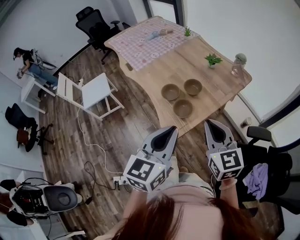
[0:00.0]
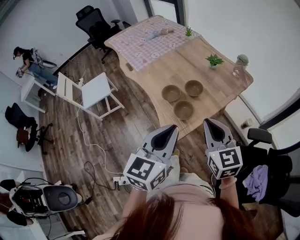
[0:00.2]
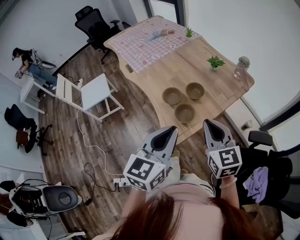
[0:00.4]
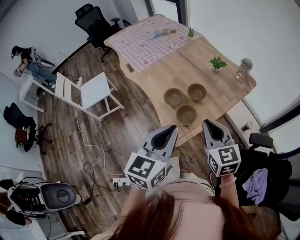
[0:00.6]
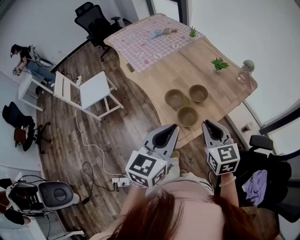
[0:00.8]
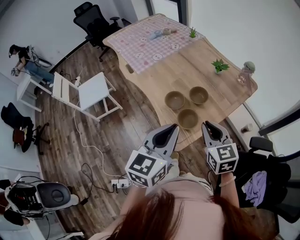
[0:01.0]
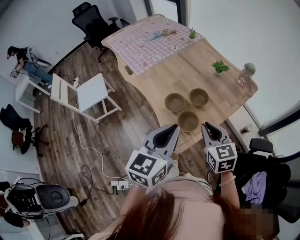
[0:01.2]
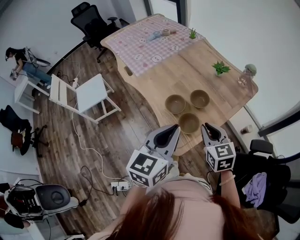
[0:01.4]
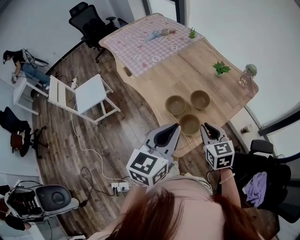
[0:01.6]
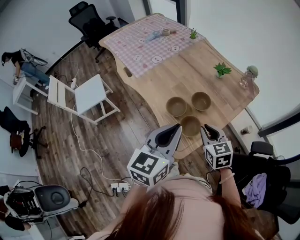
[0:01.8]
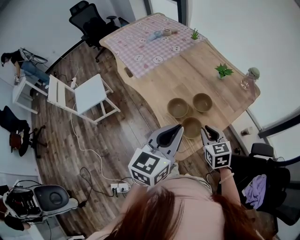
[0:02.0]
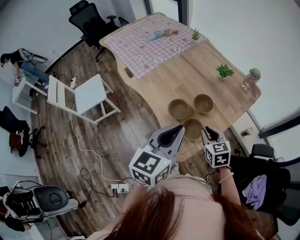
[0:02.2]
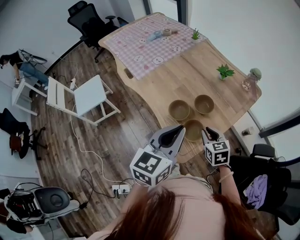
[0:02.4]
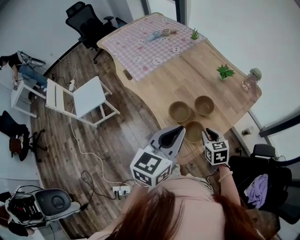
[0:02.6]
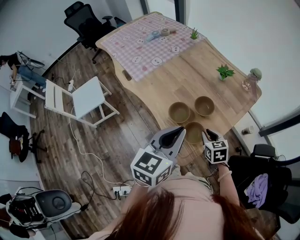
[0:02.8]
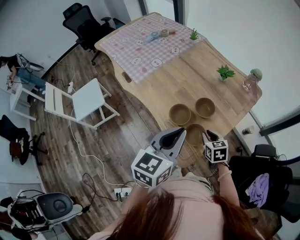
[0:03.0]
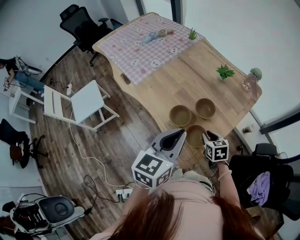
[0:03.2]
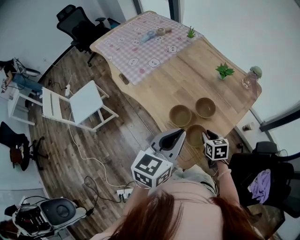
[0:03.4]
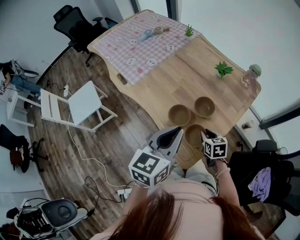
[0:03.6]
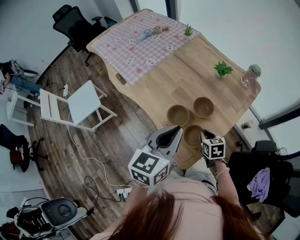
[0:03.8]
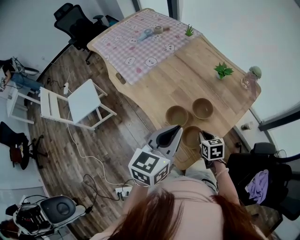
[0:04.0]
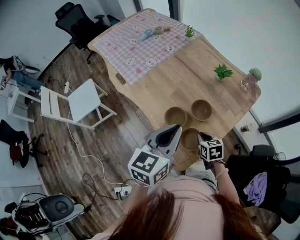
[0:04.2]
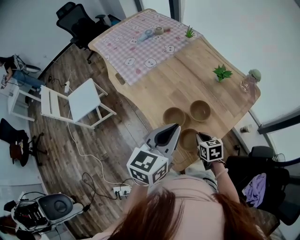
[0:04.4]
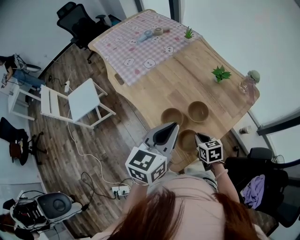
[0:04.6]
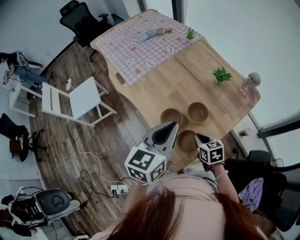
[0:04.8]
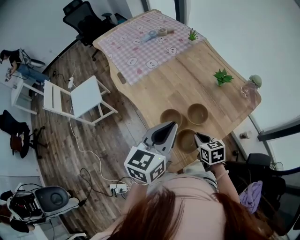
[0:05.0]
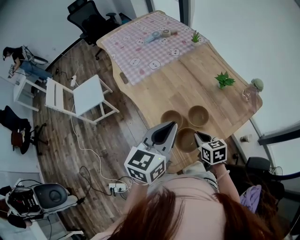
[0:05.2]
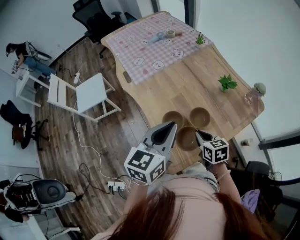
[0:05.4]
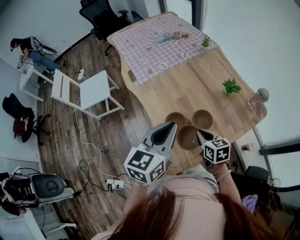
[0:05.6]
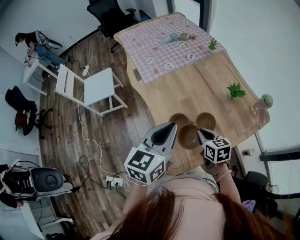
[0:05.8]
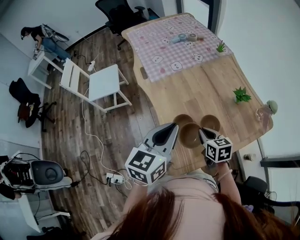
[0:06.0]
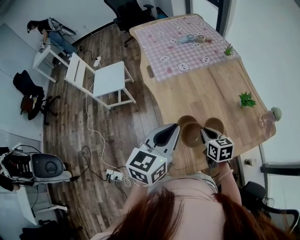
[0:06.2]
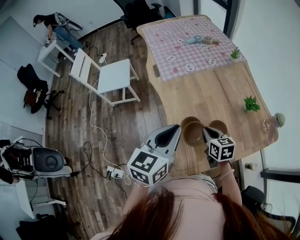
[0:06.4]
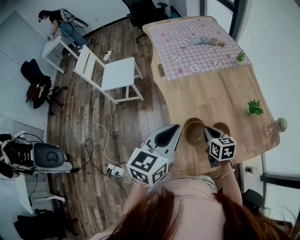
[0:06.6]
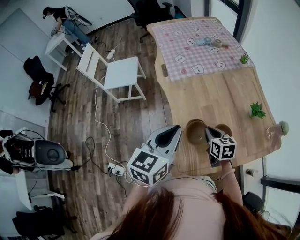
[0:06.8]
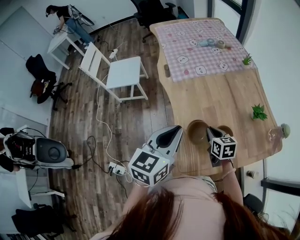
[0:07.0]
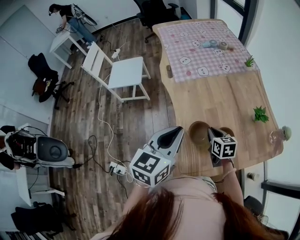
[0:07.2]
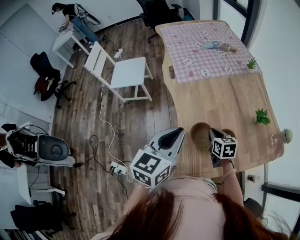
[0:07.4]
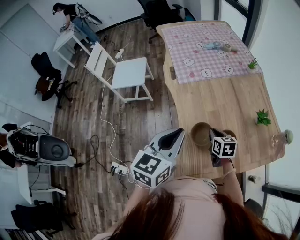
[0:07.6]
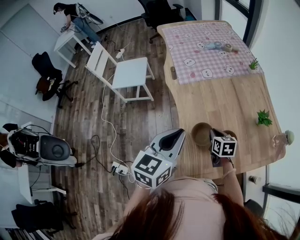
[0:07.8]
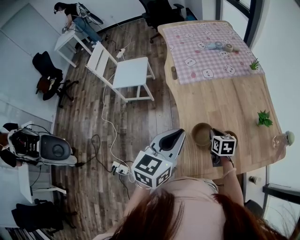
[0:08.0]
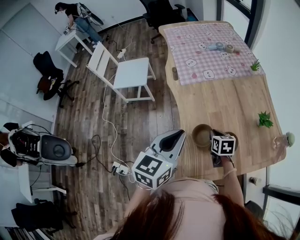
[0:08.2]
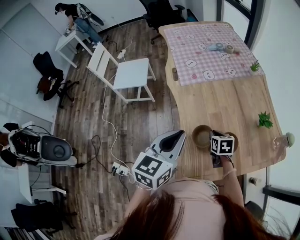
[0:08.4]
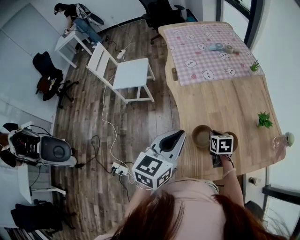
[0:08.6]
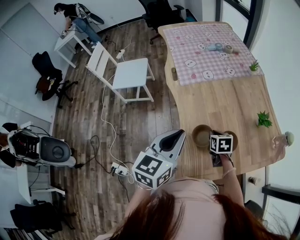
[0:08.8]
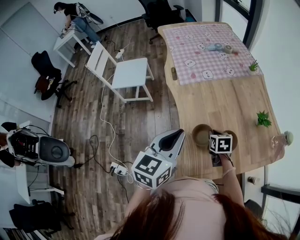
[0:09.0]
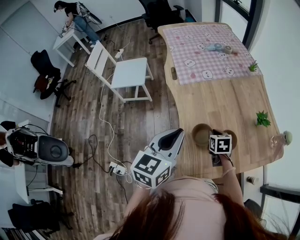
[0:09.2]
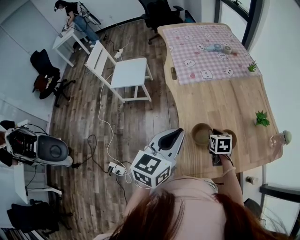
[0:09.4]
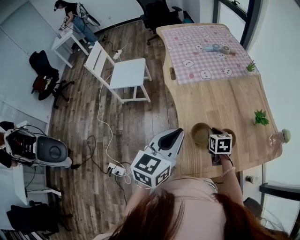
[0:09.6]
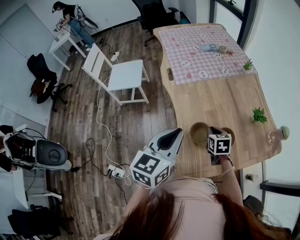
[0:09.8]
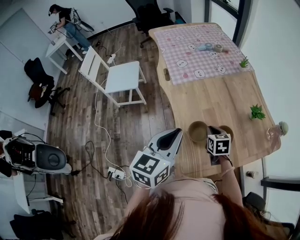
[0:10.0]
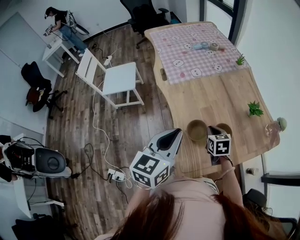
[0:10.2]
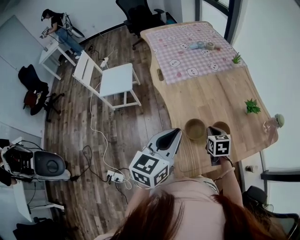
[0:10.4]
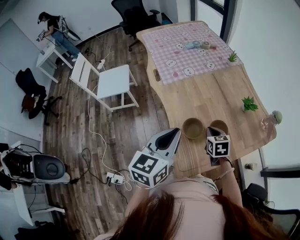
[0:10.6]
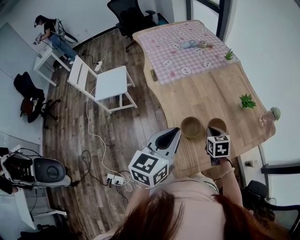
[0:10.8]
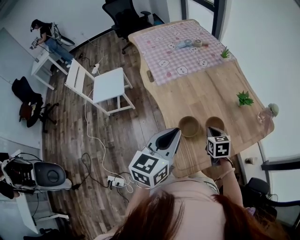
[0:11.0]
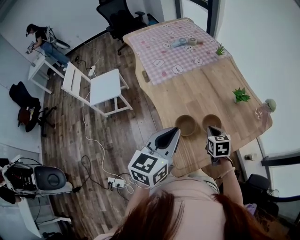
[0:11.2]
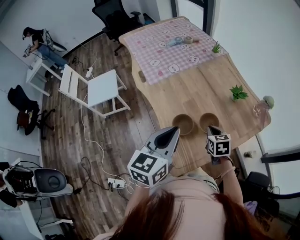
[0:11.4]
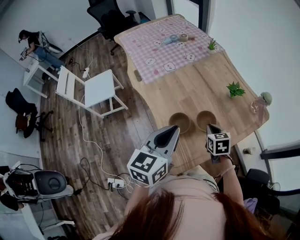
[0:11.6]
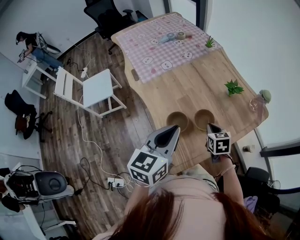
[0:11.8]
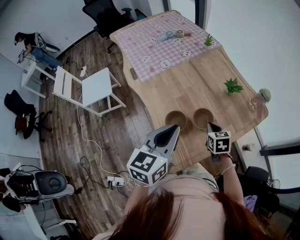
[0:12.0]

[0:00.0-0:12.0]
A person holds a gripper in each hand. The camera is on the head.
0:00.0 to 0:01.6: The left gripper shifts some 15 cm forward; the right gripper goes about 20 cm downward and forward.
0:01.6 to 0:03.0: The right gripper moves downward, approximately 15 cm, while the left gripper goes some 5 cm forward.
0:03.0 to 0:04.4: The left gripper moves forward, some 5 cm.
0:04.4 to 0:06.0: The right gripper goes about 10 cm upward and forward, and rotates about 20 degrees.
0:06.0 to 0:07.6: The left gripper goes approximately 5 cm to the left. Meanwhile the right gripper is displaced forward by approximately 5 cm.
0:07.6 to 0:09.0: The grippers stay close to where they were, moving slightly.
0:09.0 to 0:10.4: The right gripper moves roughly 5 cm.
0:10.4 to 0:12.0: Both grippers travel together to the right, some 10 cm.

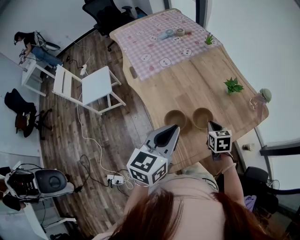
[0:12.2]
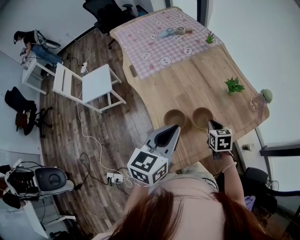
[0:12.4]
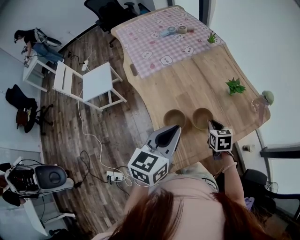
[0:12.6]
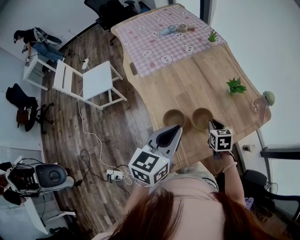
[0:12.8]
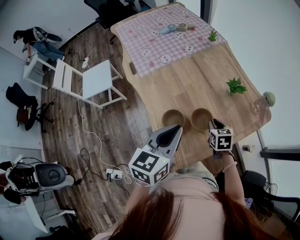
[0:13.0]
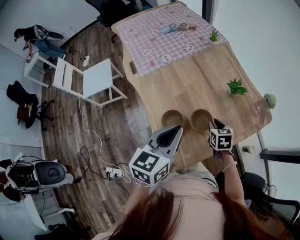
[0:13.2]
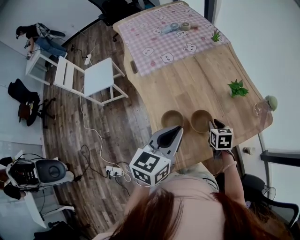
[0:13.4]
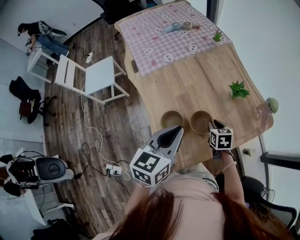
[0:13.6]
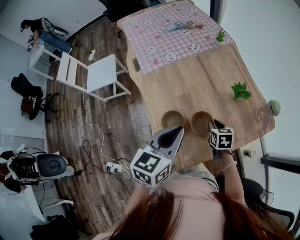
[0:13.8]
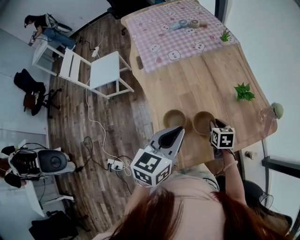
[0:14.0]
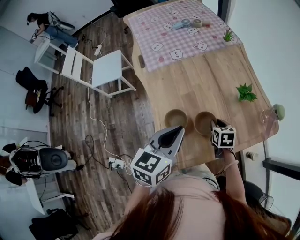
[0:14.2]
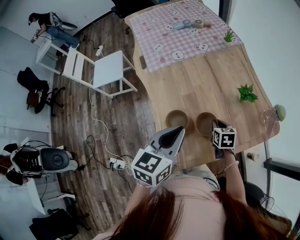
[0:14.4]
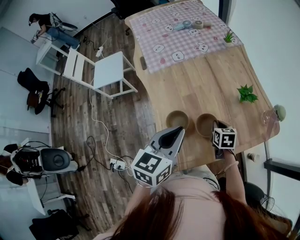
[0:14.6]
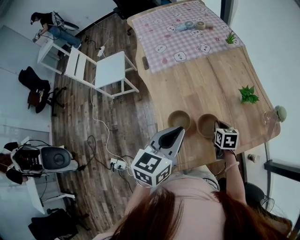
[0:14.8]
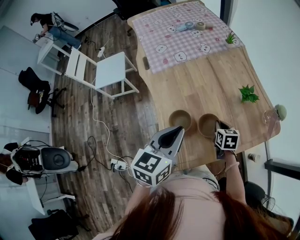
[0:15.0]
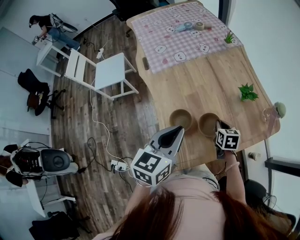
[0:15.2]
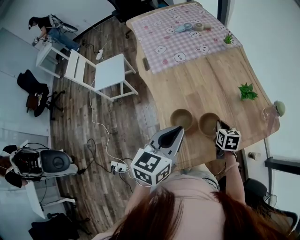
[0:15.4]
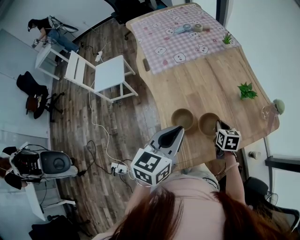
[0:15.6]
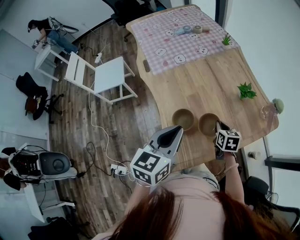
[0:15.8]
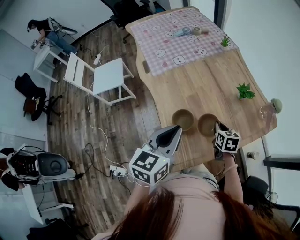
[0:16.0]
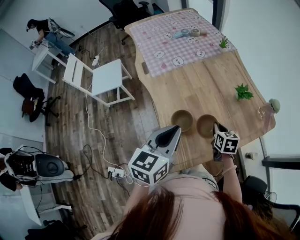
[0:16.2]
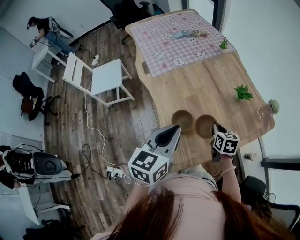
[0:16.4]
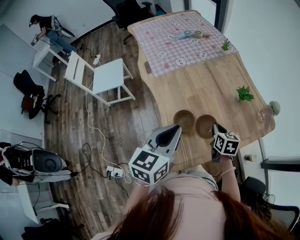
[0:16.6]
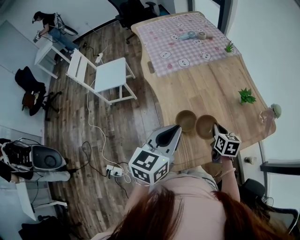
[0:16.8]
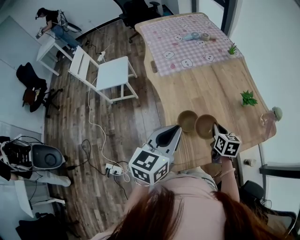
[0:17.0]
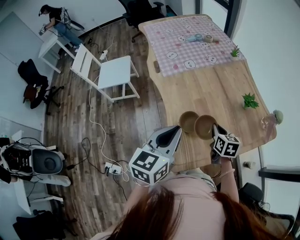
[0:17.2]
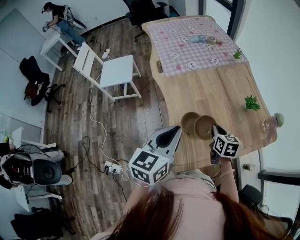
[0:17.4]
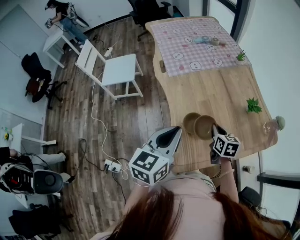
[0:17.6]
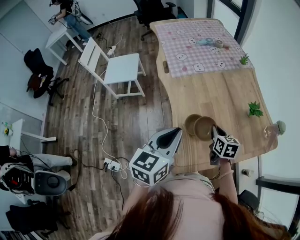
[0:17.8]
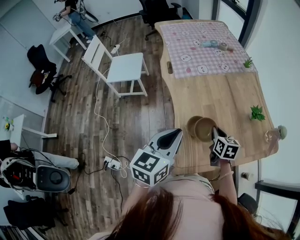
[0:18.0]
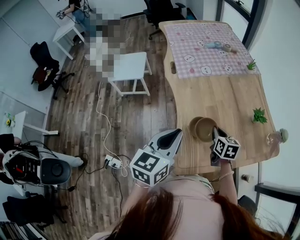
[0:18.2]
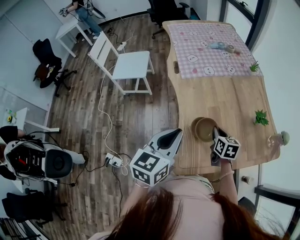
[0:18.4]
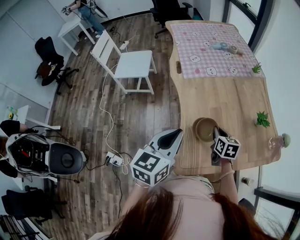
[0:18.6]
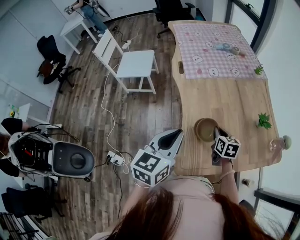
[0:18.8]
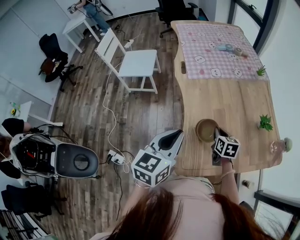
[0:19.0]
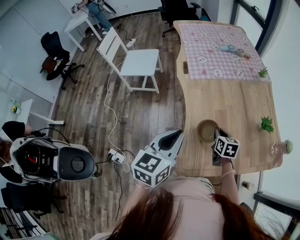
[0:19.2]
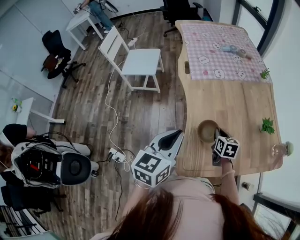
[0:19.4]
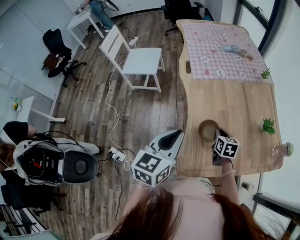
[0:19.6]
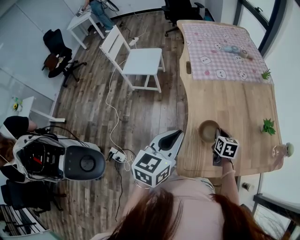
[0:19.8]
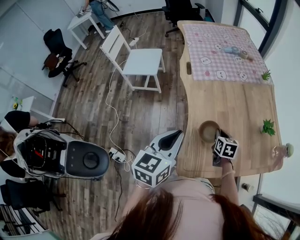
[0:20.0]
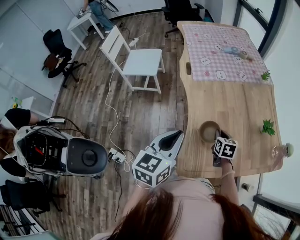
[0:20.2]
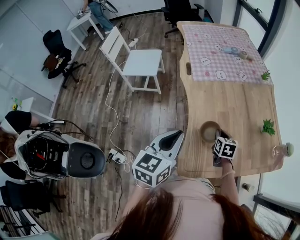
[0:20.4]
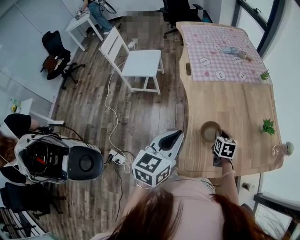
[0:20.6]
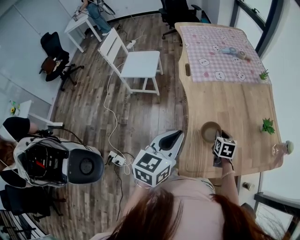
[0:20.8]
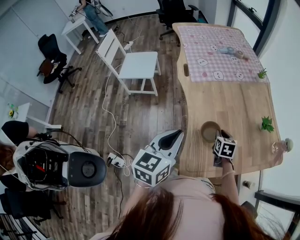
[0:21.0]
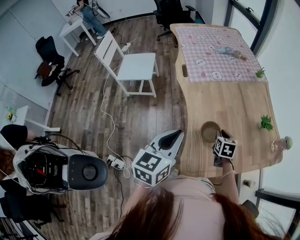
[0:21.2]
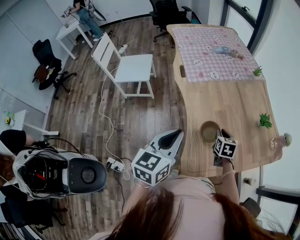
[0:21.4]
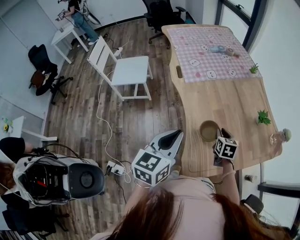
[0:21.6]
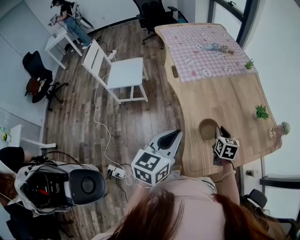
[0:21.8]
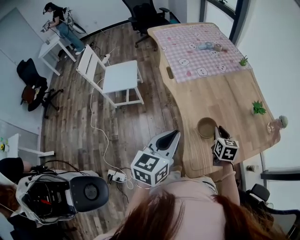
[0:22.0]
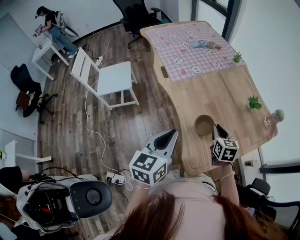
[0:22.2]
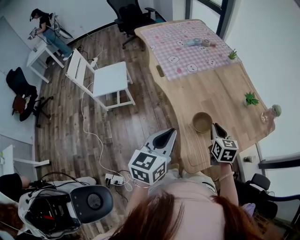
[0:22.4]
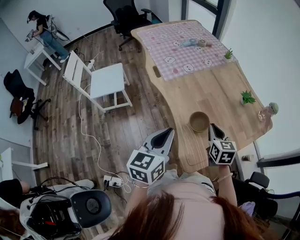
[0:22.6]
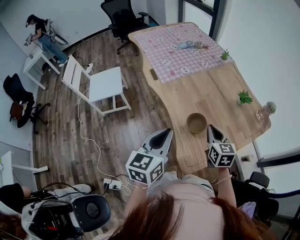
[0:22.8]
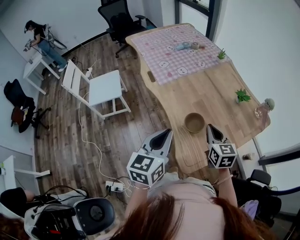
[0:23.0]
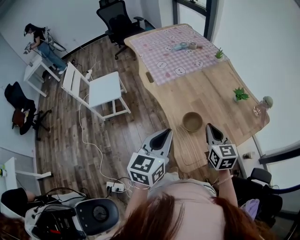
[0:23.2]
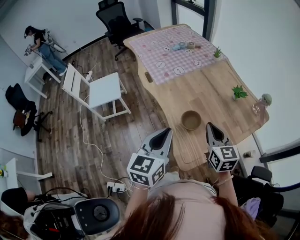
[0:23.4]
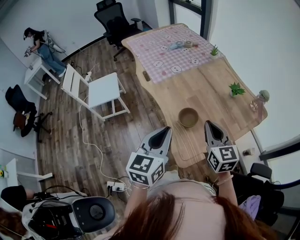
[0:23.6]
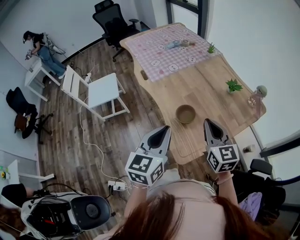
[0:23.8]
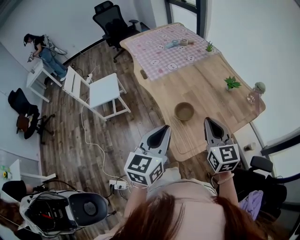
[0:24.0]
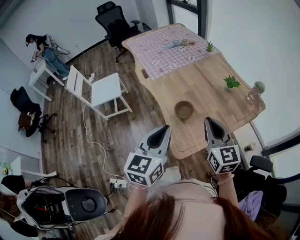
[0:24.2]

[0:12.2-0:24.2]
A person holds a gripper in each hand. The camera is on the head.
0:12.2 to 0:13.8: The right gripper heads downward and forward, covering about 5 cm; the left gripper moves roughly 5 cm.
0:13.8 to 0:15.2: The grippers move only a little.
0:15.2 to 0:16.6: The left gripper changes place by roughly 5 cm, while the right gripper moves upward, roughly 5 cm.
0:16.6 to 0:18.2: The grippers both shift to the left by approximately 10 cm.
0:18.2 to 0:19.8: The right gripper changes place by some 5 cm.
0:19.8 to 0:21.2: The grippers move only a little.
0:21.2 to 0:22.6: The right gripper shifts some 10 cm upward and backward.
0:22.6 to 0:24.2: The left gripper heads to the right, backward and upward, covering roughly 15 cm, while the right gripper is displaced upward, backward and to the right by roughly 20 cm, and turns by approximately 20 degrees.
